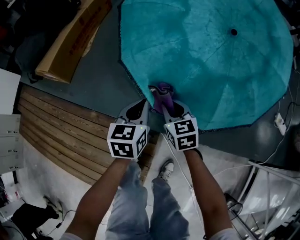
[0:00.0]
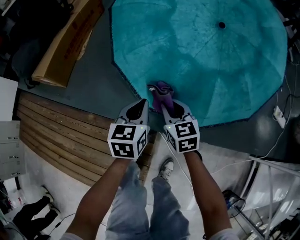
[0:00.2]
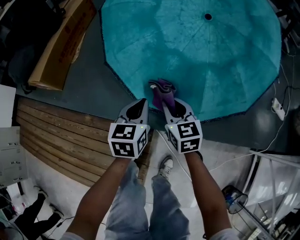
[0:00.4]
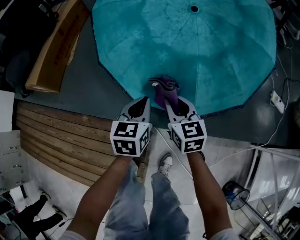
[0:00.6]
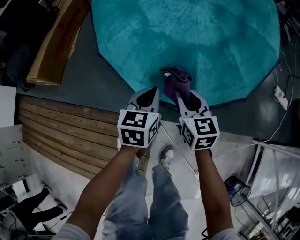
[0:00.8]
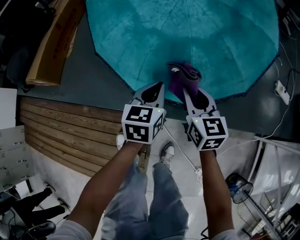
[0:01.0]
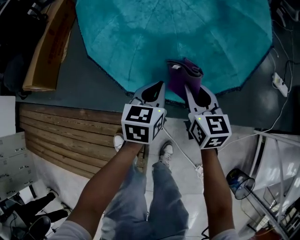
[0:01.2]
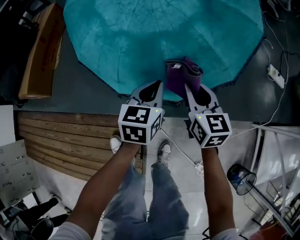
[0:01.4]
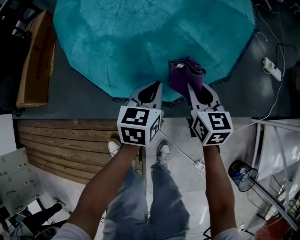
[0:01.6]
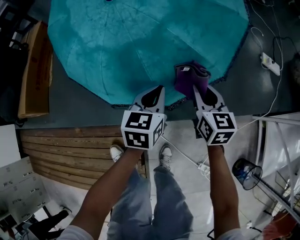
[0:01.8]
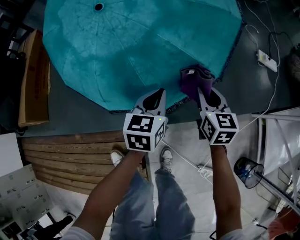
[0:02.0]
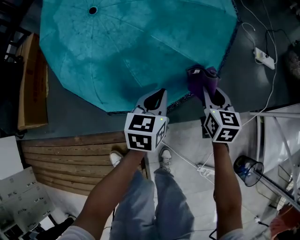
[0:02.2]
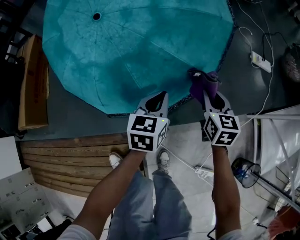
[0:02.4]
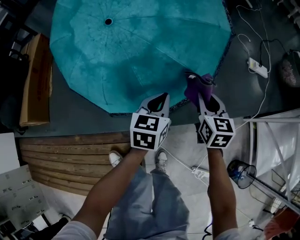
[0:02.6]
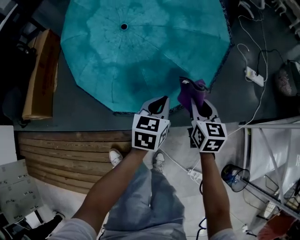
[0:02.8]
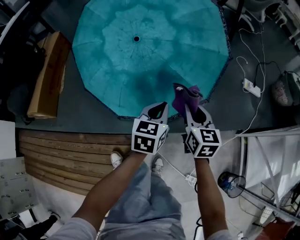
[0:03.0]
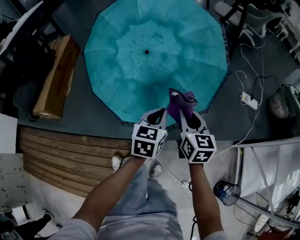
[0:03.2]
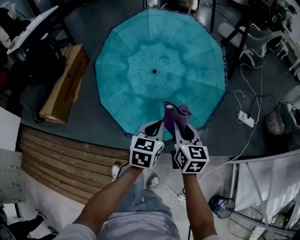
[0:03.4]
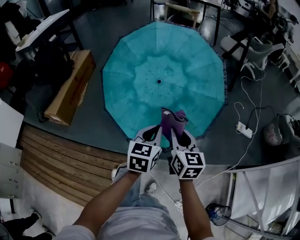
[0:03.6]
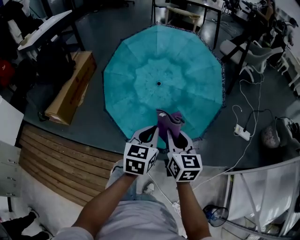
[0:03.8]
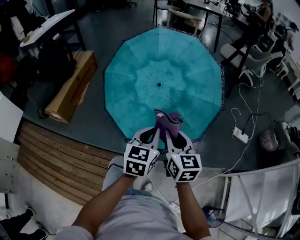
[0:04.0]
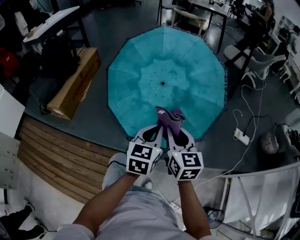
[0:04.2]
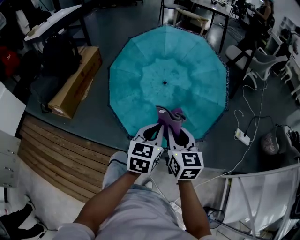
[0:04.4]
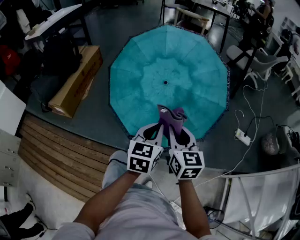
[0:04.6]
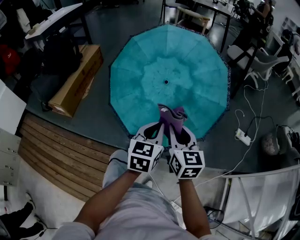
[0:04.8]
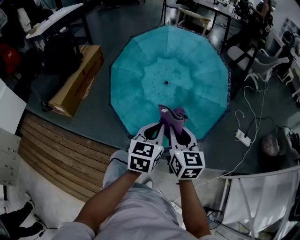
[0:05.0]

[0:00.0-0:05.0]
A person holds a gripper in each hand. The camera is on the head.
0:00.0 to 0:01.6: The grippers both shift to the right by some 30 cm. The left gripper rotates about 20 degrees, while the right gripper swivels roughly 30 degrees.
0:01.6 to 0:03.4: Both grippers travel together upward, approximately 25 cm.
0:03.4 to 0:05.0: The right gripper shifts about 10 cm upward and to the left; the left gripper goes some 10 cm upward.

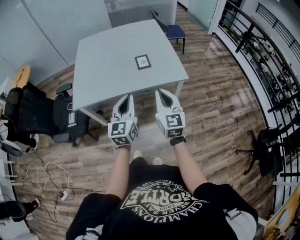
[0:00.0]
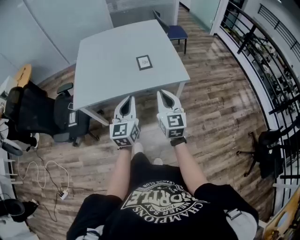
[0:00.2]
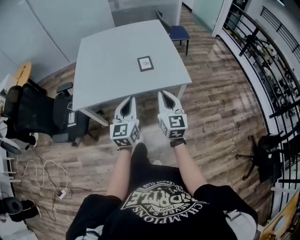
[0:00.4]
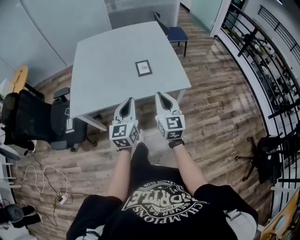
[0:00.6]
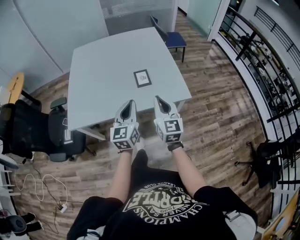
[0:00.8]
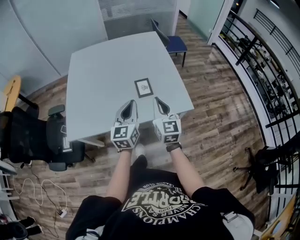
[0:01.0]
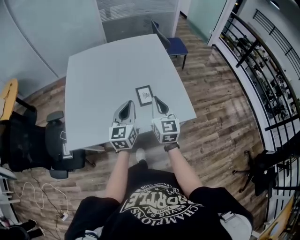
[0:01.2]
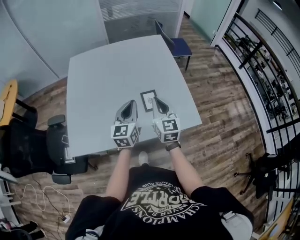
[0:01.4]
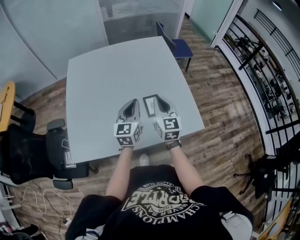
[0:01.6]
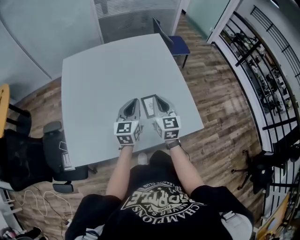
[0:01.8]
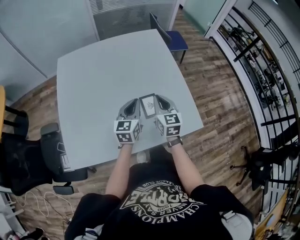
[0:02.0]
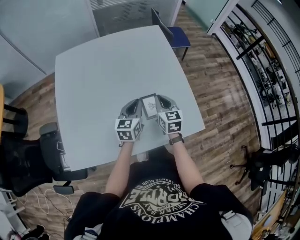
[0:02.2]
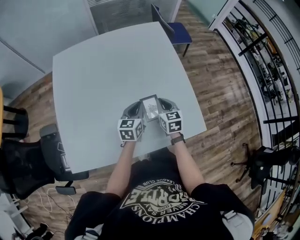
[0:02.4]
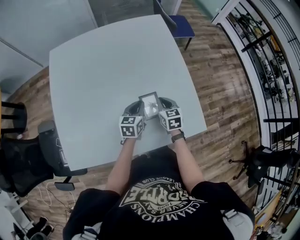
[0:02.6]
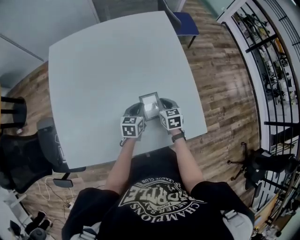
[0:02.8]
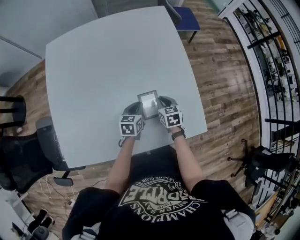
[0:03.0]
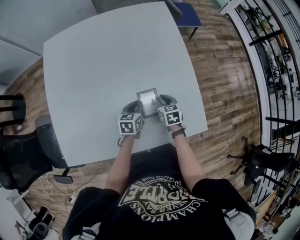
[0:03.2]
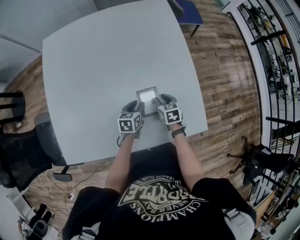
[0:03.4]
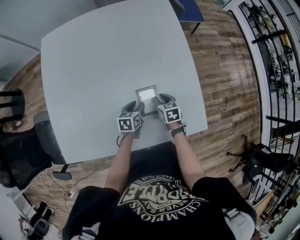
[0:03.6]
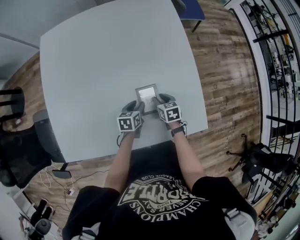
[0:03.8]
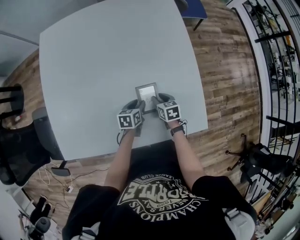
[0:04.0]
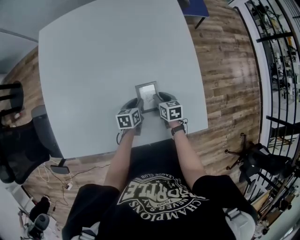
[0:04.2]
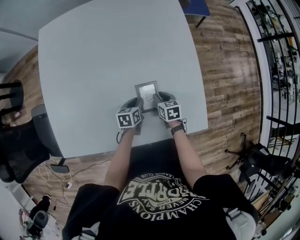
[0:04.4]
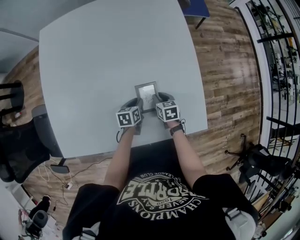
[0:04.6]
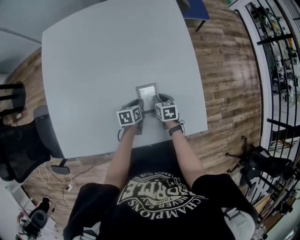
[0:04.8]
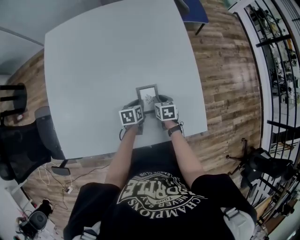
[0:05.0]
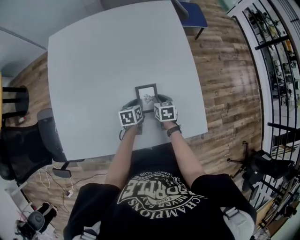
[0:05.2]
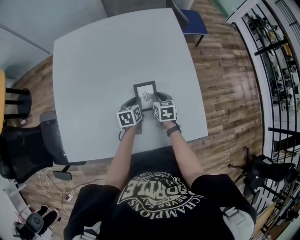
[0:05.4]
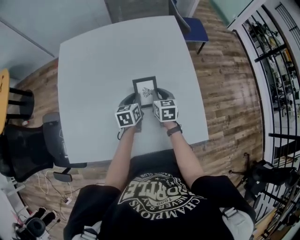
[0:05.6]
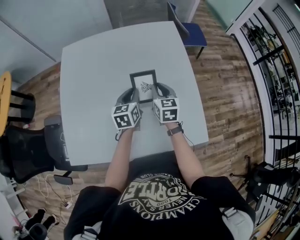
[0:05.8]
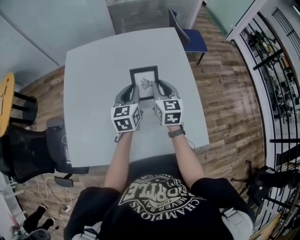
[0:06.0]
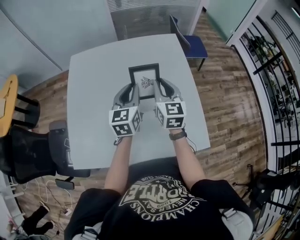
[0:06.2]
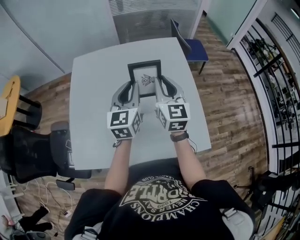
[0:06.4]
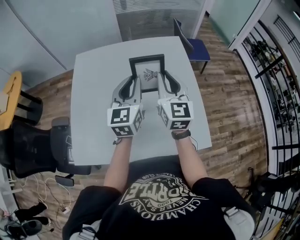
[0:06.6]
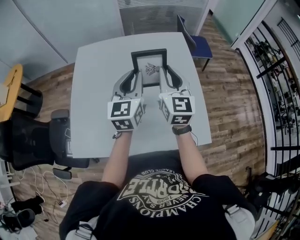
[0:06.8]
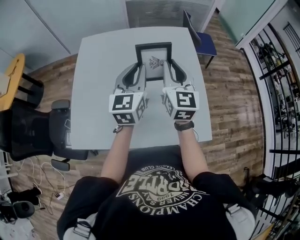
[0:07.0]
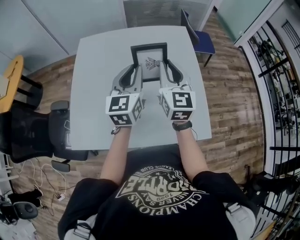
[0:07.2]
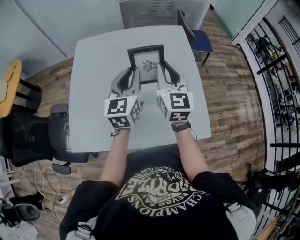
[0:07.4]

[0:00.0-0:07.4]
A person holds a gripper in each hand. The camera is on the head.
0:00.0 to 0:01.4: The two grippers travel together, forward, about 40 cm.
0:01.4 to 0:03.0: The grippers both shift downward and forward by roughly 35 cm. The right gripper points its fingers roughly 40 degrees further downward, while the left gripper tilts its fingers roughly 30 degrees downward.
0:03.0 to 0:04.4: The two grippers go about 10 cm downward. The left gripper opens up.
0:04.4 to 0:06.0: The two grippers go roughly 30 cm upward. The right gripper tips its fingers upward by about 30 degrees. The left gripper swivels about 40 degrees.
0:06.0 to 0:07.4: Both grippers travel together upward and backward, approximately 15 cm.

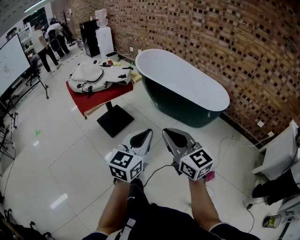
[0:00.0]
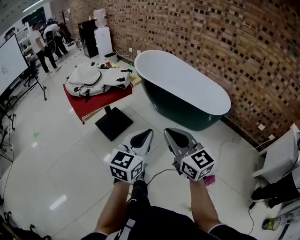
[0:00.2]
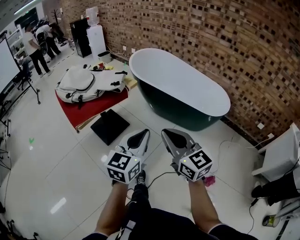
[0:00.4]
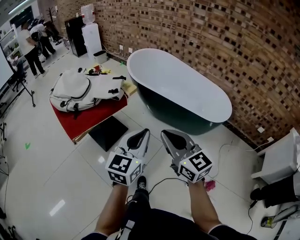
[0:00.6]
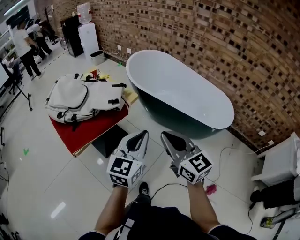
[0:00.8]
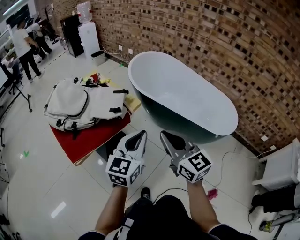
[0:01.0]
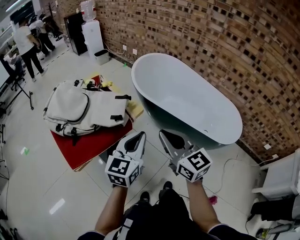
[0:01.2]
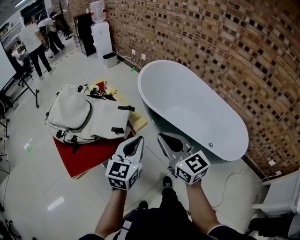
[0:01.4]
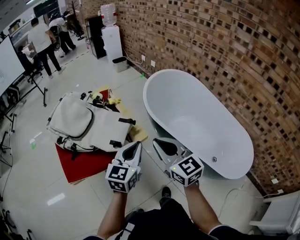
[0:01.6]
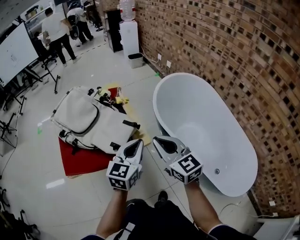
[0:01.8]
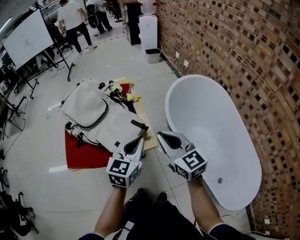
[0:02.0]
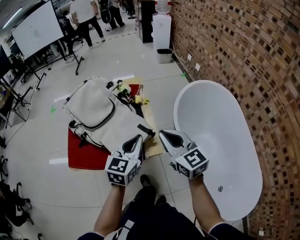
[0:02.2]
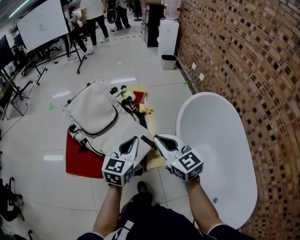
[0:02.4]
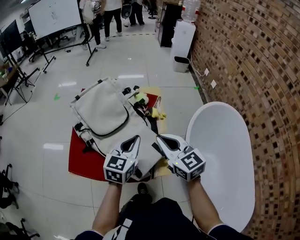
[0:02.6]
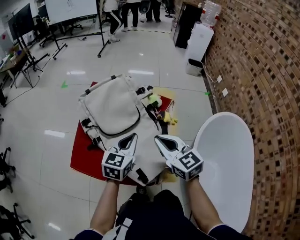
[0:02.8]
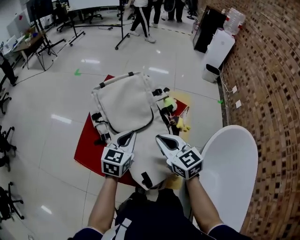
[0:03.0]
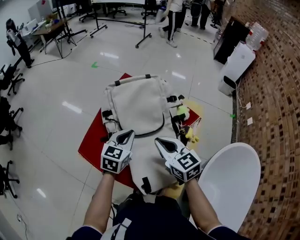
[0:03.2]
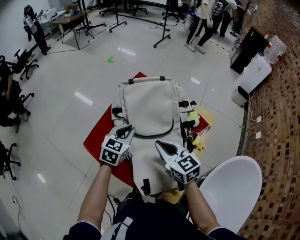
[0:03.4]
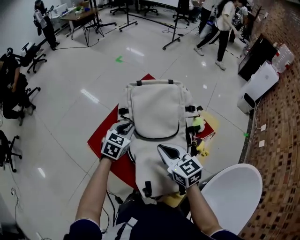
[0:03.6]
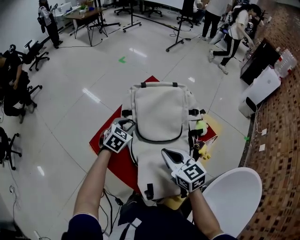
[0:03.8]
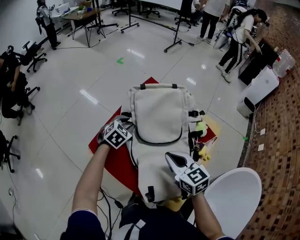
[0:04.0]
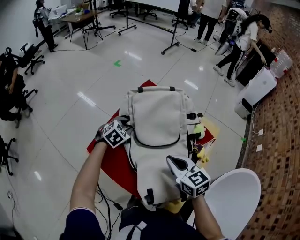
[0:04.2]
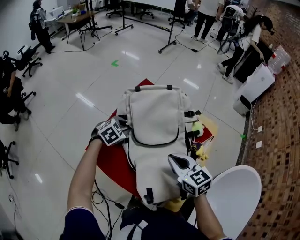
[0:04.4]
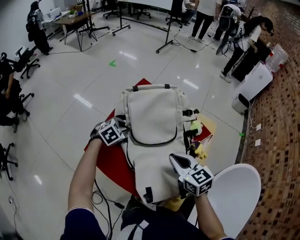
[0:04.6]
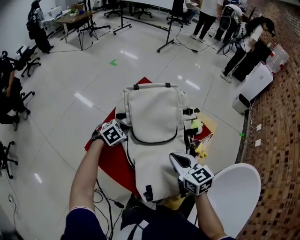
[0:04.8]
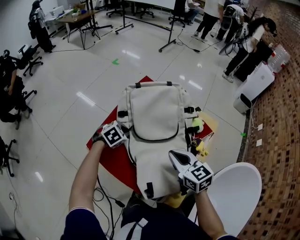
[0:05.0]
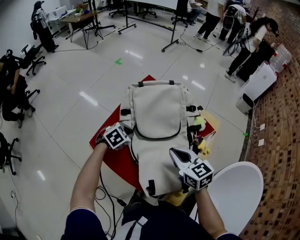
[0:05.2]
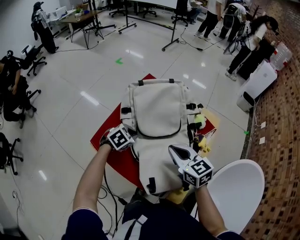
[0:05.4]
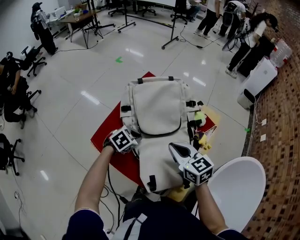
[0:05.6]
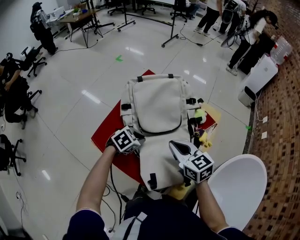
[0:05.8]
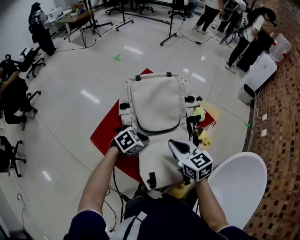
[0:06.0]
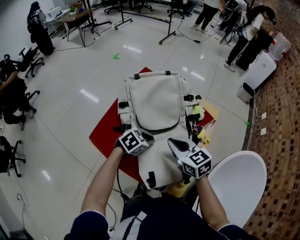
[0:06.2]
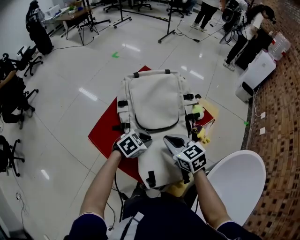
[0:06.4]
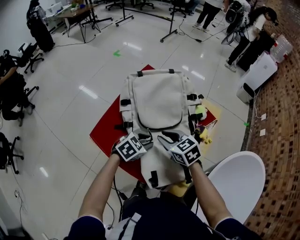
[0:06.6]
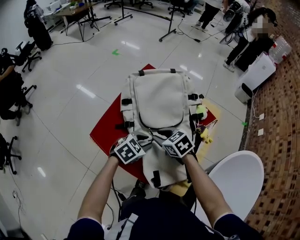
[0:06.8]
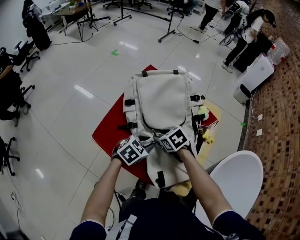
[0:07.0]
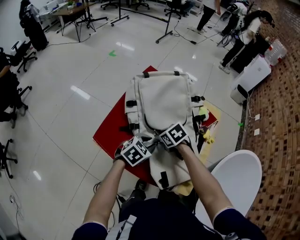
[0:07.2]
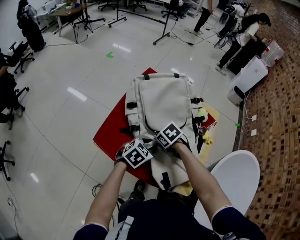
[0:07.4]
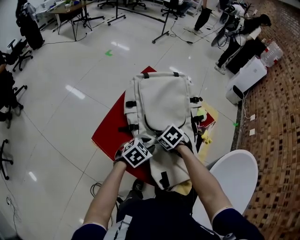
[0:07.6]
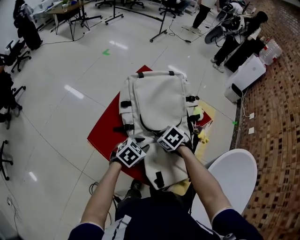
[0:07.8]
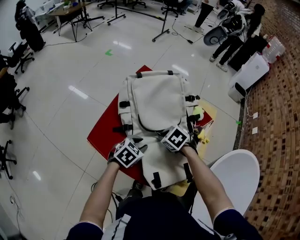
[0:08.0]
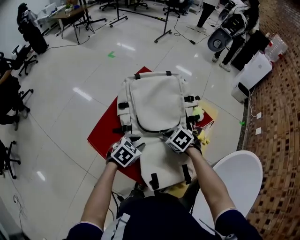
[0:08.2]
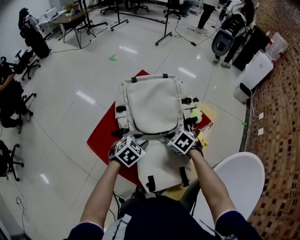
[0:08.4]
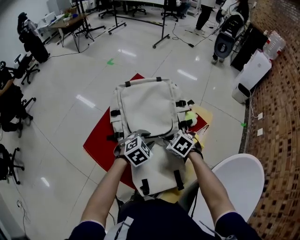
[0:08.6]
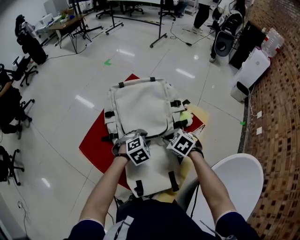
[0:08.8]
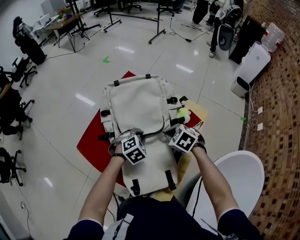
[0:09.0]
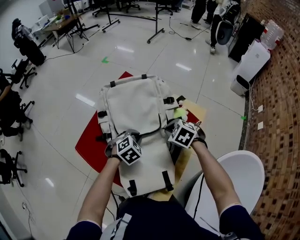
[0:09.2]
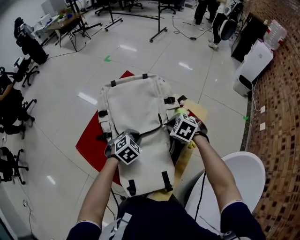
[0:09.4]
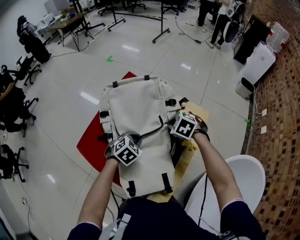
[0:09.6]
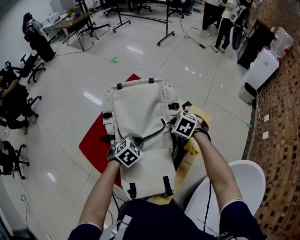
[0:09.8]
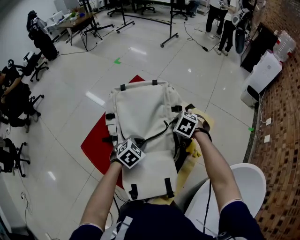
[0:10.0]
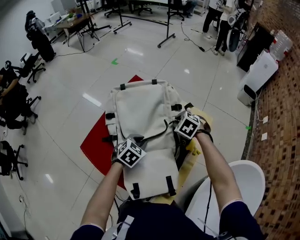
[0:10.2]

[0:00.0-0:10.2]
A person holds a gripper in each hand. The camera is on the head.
0:00.0 to 0:01.4: The pair of grippers is taken forward, some 50 cm.
0:01.4 to 0:03.0: The left gripper moves roughly 40 cm, and swivels about 50 degrees, while the right gripper changes place by some 40 cm, and changes its angle by about 60 degrees.
0:03.0 to 0:04.4: The left gripper goes approximately 20 cm to the left, forward and downward, tilts its fingers some 30 degrees downward, and opens its fingers.
0:04.4 to 0:05.8: The left gripper heads backward and to the right, covering some 15 cm, and closes up.
0:05.8 to 0:07.2: The right gripper is displaced downward and to the left by roughly 15 cm, tips its fingers downward by roughly 40 degrees, and opens its fingers.
0:07.2 to 0:08.8: The right gripper ends up some 15 cm from where it was, turns by about 20 degrees, and closes; the left gripper shifts by approximately 10 cm, and rotates some 30 degrees.
0:08.8 to 0:10.2: The right gripper goes approximately 10 cm forward and to the right, while the left gripper changes its angle by approximately 20 degrees.

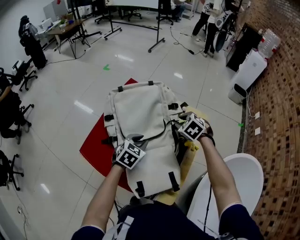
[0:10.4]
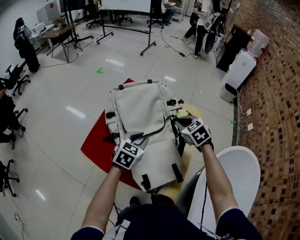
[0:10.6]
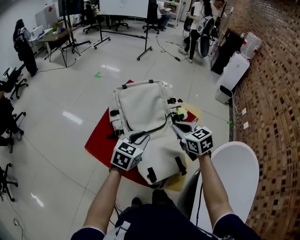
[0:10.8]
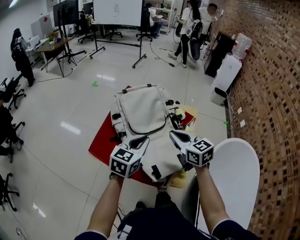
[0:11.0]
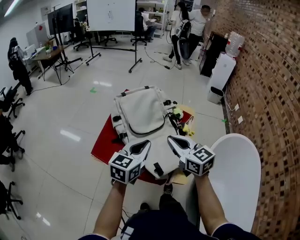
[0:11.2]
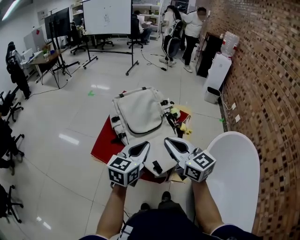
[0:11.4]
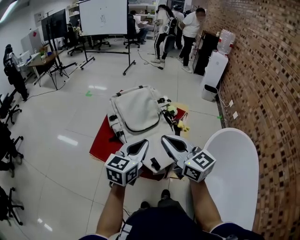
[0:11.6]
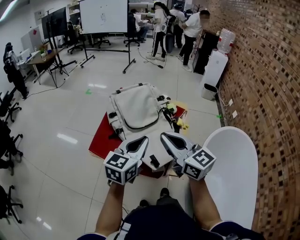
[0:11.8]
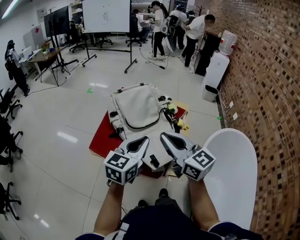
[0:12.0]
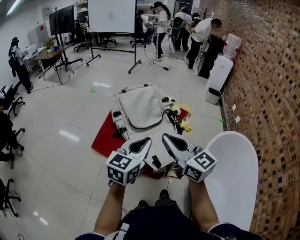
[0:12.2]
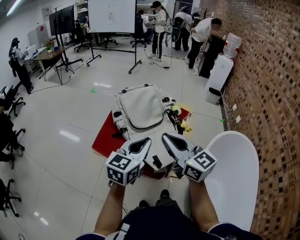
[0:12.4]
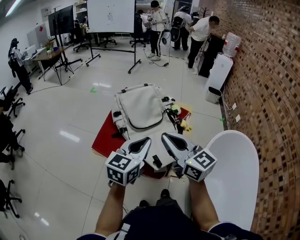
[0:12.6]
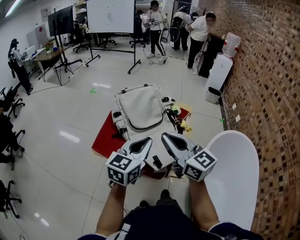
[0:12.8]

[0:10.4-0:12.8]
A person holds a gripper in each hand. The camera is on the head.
0:10.4 to 0:11.6: The left gripper shifts approximately 25 cm upward and backward, and tilts its fingers some 30 degrees upward. Meanwhile the right gripper heads backward and upward, covering approximately 40 cm, angles its fingers upward, by roughly 60 degrees, and closes up.
0:11.6 to 0:12.8: The grippers stay close to where they were, moving slightly.
